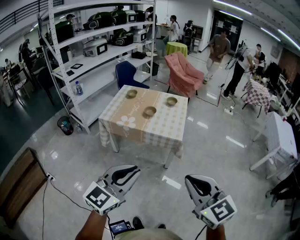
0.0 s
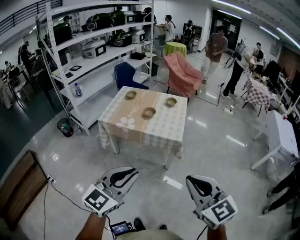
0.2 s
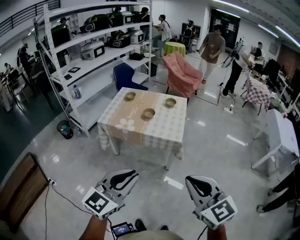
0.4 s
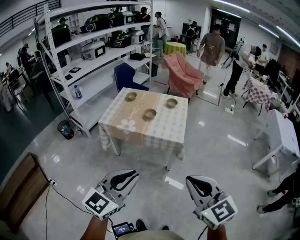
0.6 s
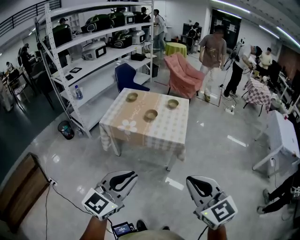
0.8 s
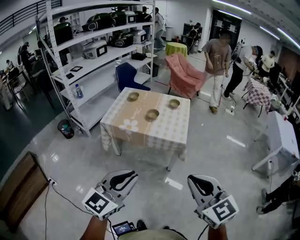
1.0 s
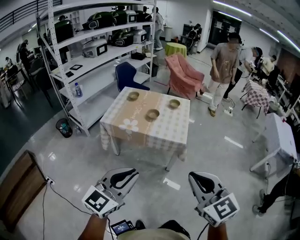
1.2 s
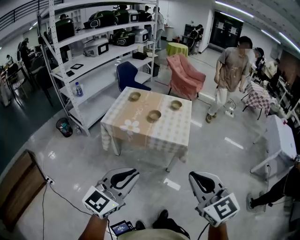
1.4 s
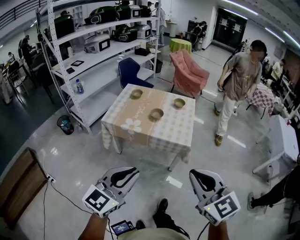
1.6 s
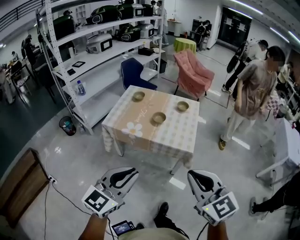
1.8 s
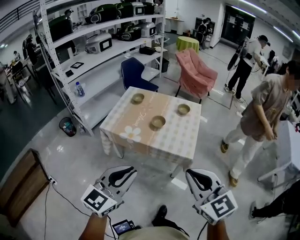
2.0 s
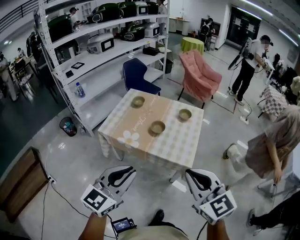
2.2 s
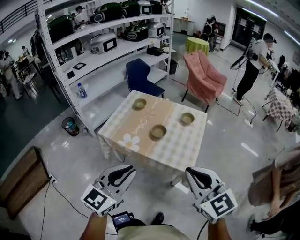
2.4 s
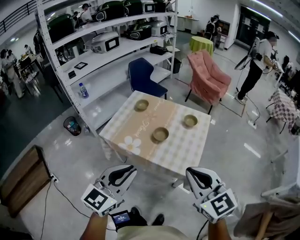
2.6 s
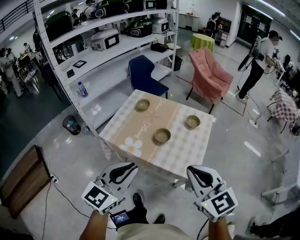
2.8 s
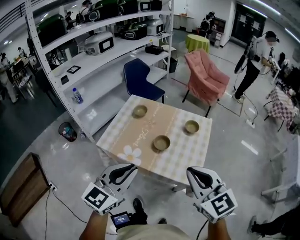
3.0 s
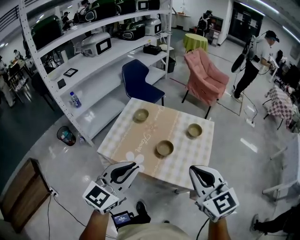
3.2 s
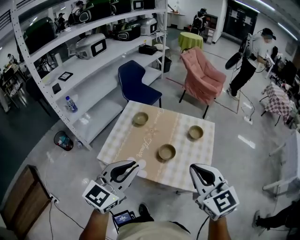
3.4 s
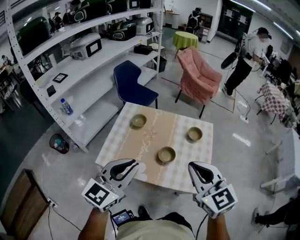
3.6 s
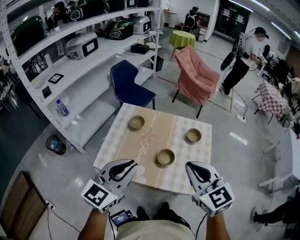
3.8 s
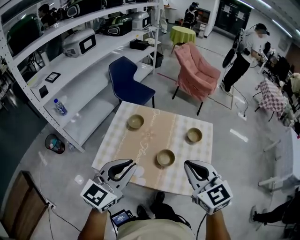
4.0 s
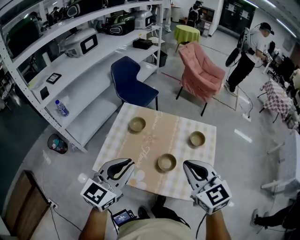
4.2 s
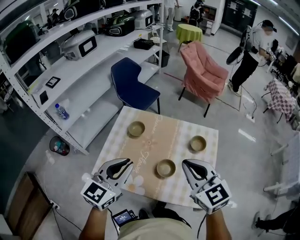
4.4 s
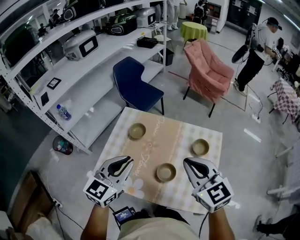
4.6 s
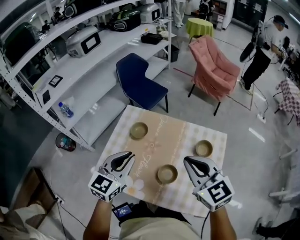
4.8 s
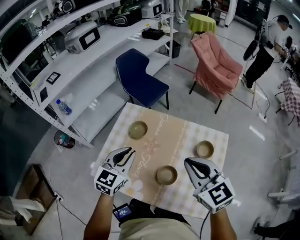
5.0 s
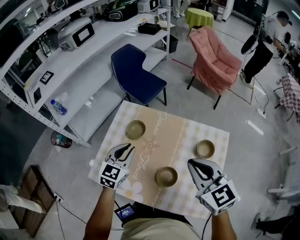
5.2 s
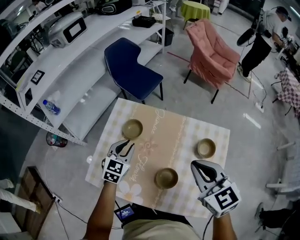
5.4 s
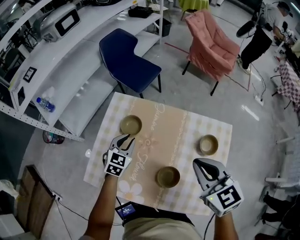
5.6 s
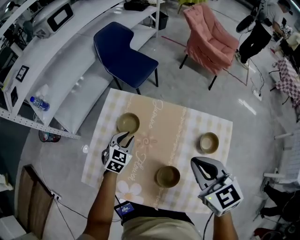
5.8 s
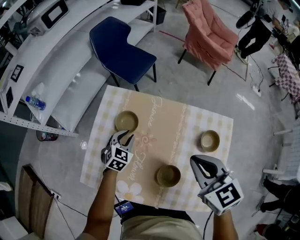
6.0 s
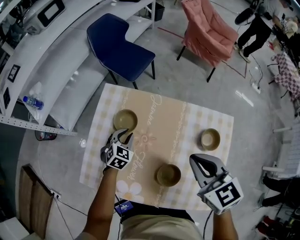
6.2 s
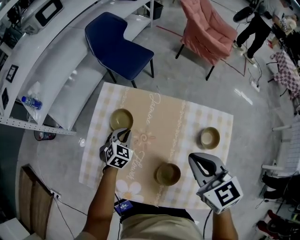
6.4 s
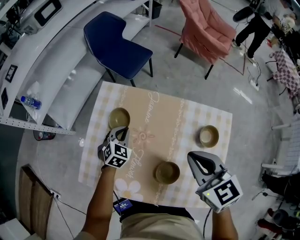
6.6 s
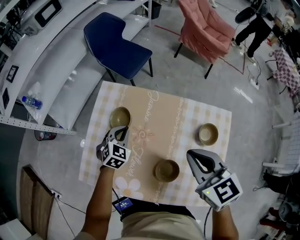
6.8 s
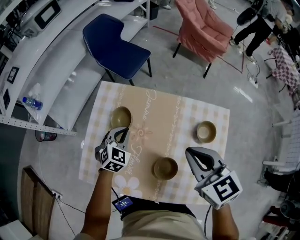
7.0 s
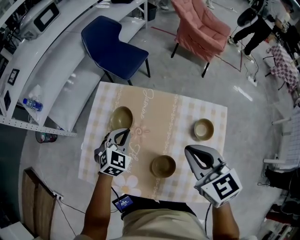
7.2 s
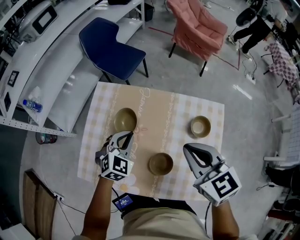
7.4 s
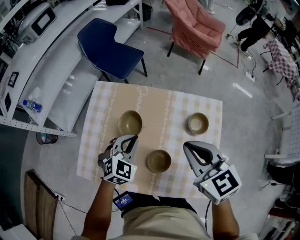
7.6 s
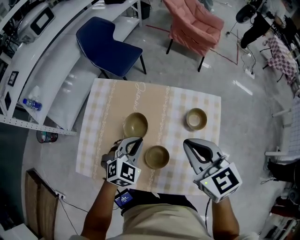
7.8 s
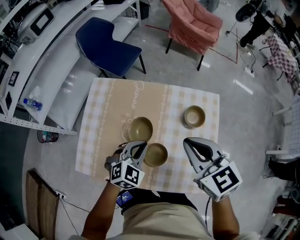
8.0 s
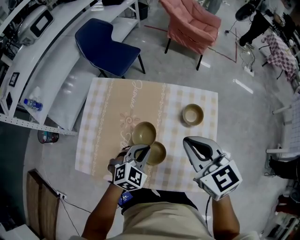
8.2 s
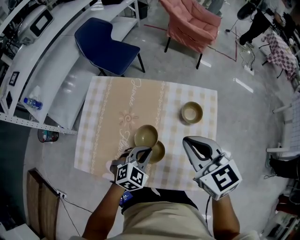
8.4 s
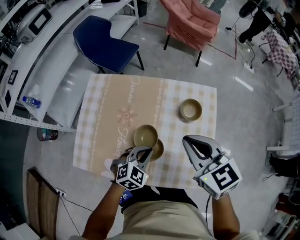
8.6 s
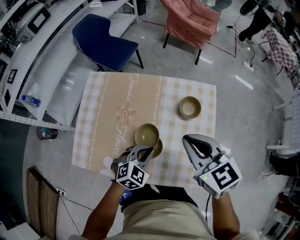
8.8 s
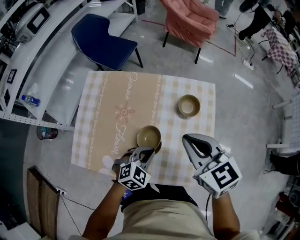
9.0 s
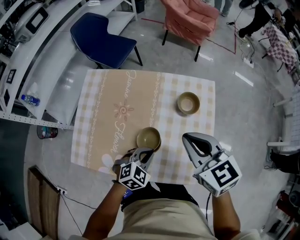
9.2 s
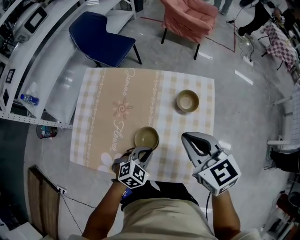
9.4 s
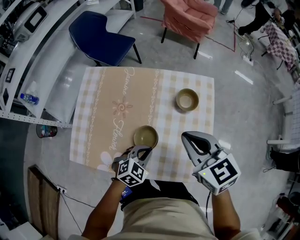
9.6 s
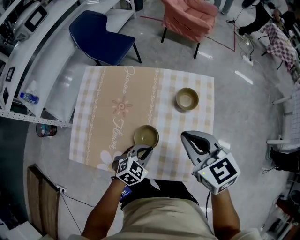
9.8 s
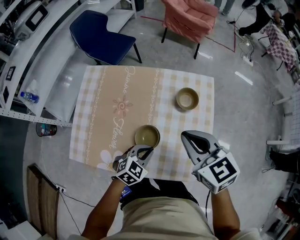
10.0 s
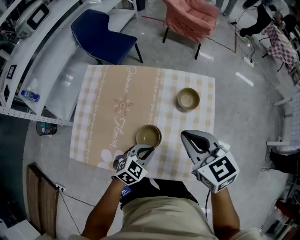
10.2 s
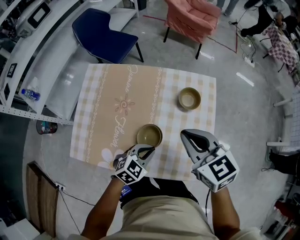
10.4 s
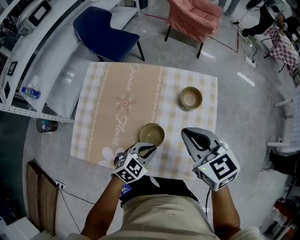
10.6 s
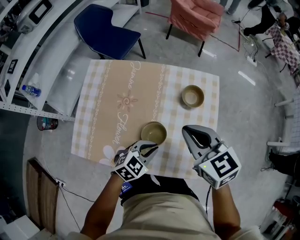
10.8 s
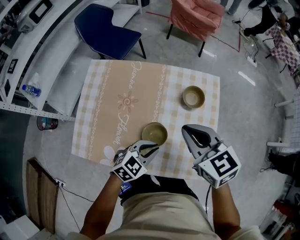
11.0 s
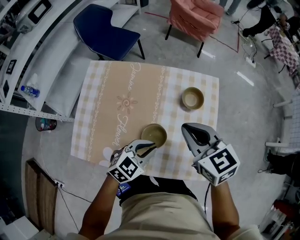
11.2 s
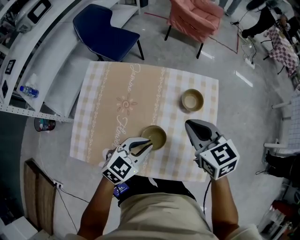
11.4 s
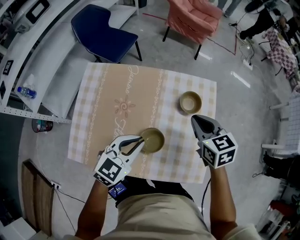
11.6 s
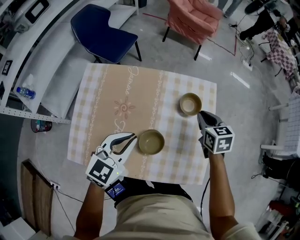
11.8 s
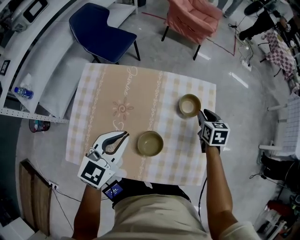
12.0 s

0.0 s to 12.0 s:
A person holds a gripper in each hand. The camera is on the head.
0.0 to 1.6 s: The two grippers go roughly 10 cm forward and to the left.
1.6 to 3.0 s: The two grippers go roughly 35 cm forward.
3.0 to 4.4 s: Both grippers move forward, approximately 25 cm.
4.4 to 6.0 s: The right gripper travels forward and downward by some 20 cm, while the left gripper heads downward and forward, covering roughly 40 cm, and tips its fingers downward by some 30 degrees.
6.0 to 7.6 s: The right gripper shifts by about 5 cm. The left gripper heads upward, backward and to the right, covering roughly 20 cm.
7.6 to 9.0 s: The left gripper shifts about 20 cm backward, to the right and downward. Meanwhile the right gripper is displaced to the right and backward by roughly 10 cm.
9.0 to 10.4 s: There are only small adjustments of the grippers.
10.4 to 12.0 s: The left gripper heads upward, to the left and forward, covering some 20 cm, and swivels approximately 30 degrees, while the right gripper moves downward, forward and to the right, about 25 cm, changes its angle by roughly 40 degrees, and opens up.

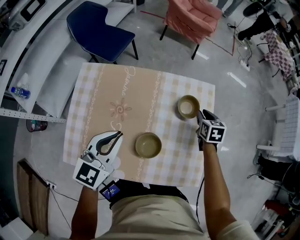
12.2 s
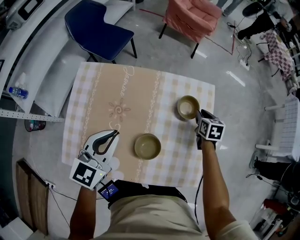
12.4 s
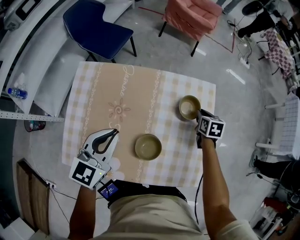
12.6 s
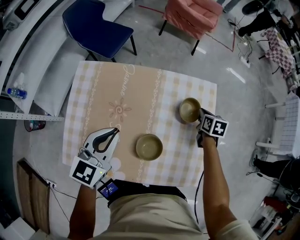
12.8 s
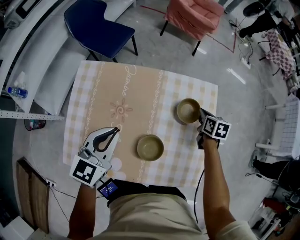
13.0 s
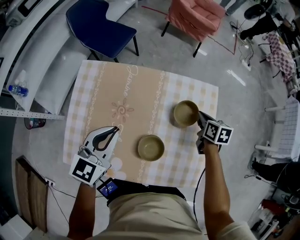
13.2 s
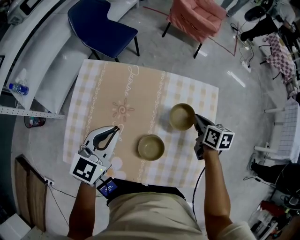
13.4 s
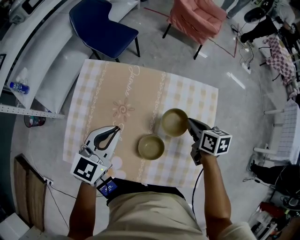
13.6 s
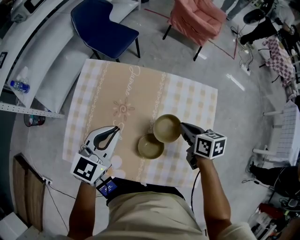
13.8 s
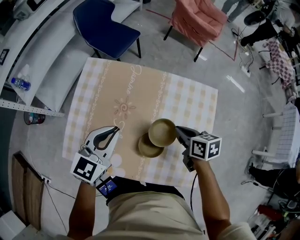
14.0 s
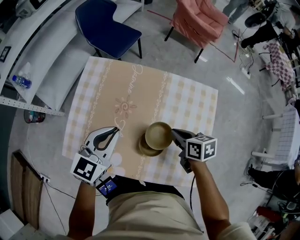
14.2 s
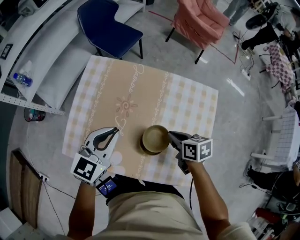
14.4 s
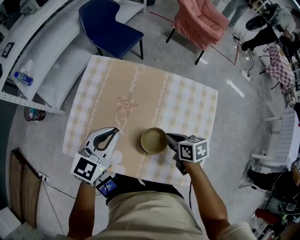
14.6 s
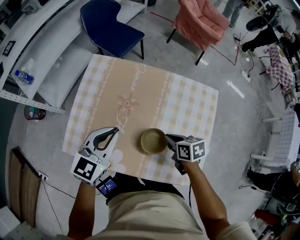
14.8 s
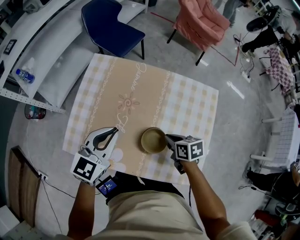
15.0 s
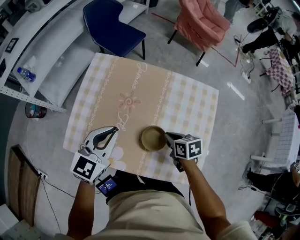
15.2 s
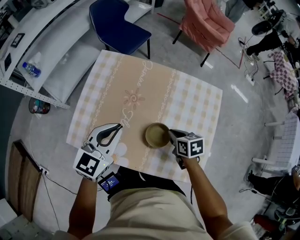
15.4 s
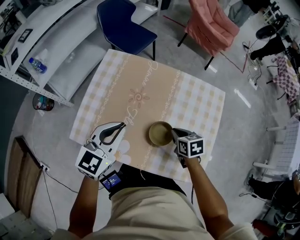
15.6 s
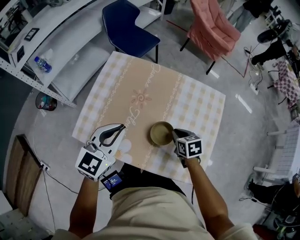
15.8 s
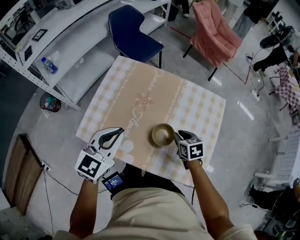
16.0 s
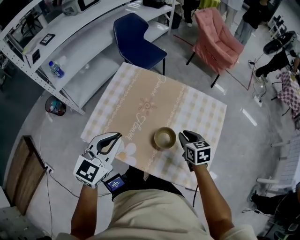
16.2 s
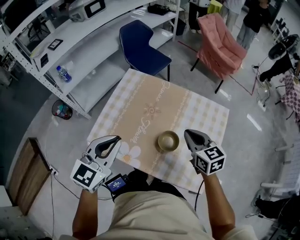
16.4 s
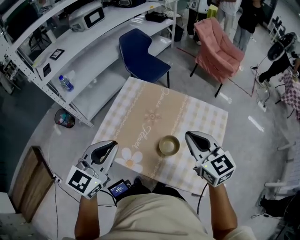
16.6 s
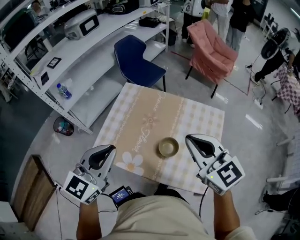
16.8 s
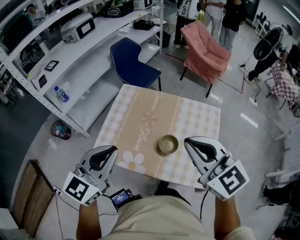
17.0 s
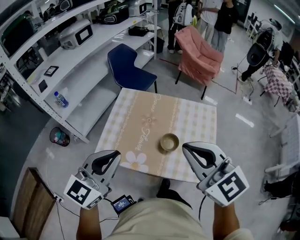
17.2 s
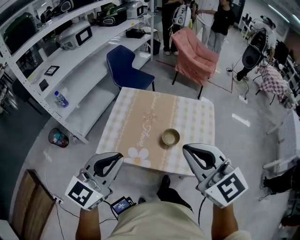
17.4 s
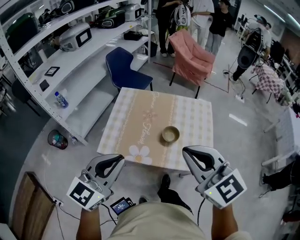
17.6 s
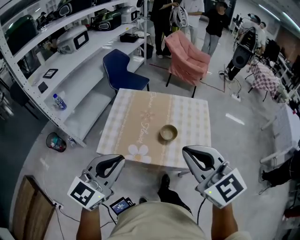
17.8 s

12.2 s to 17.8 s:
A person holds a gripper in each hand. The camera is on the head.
12.2 to 13.6 s: The right gripper shifts some 10 cm to the left and upward, changes its angle by approximately 30 degrees, and closes up.
13.6 to 15.0 s: The left gripper travels backward by about 5 cm, while the right gripper shifts some 15 cm to the left, backward and downward.
15.0 to 16.4 s: The right gripper is displaced upward by about 20 cm, and turns by approximately 40 degrees; the left gripper shifts about 15 cm upward, backward and to the left.
16.4 to 17.8 s: The right gripper is displaced backward, upward and to the left by some 40 cm, and changes its angle by about 30 degrees. Meanwhile the left gripper goes about 20 cm backward and upward, and turns by approximately 20 degrees.

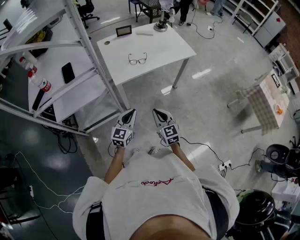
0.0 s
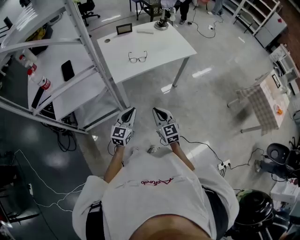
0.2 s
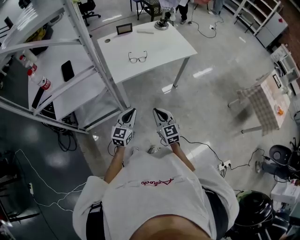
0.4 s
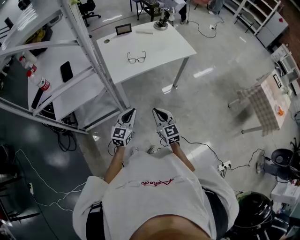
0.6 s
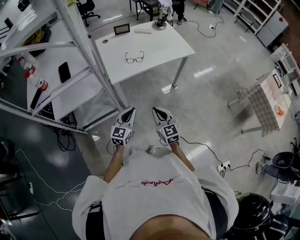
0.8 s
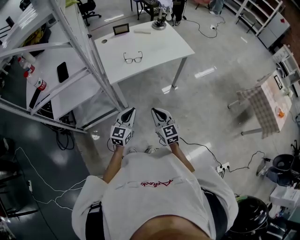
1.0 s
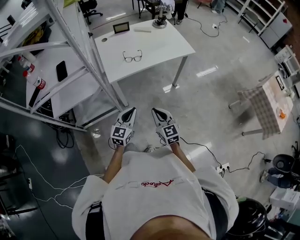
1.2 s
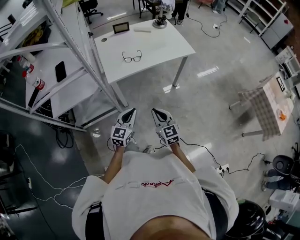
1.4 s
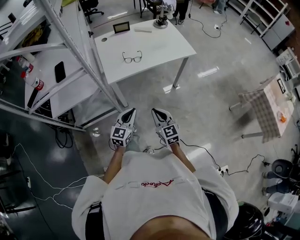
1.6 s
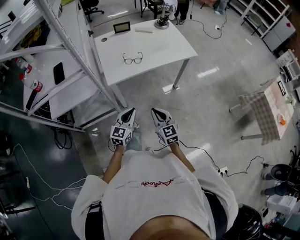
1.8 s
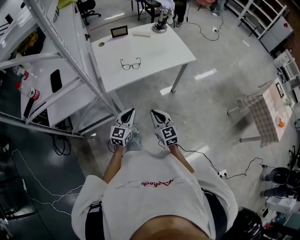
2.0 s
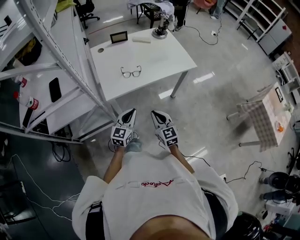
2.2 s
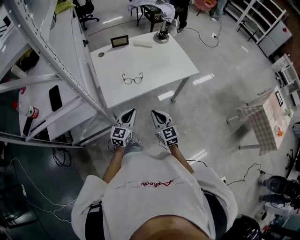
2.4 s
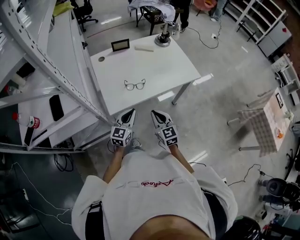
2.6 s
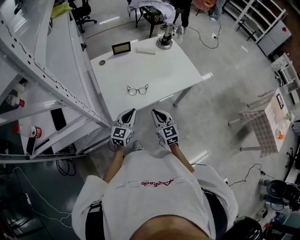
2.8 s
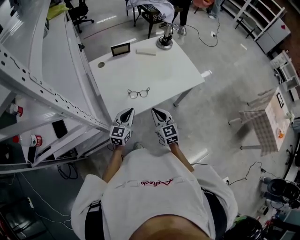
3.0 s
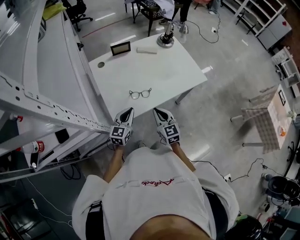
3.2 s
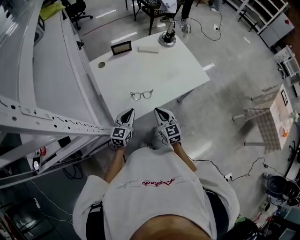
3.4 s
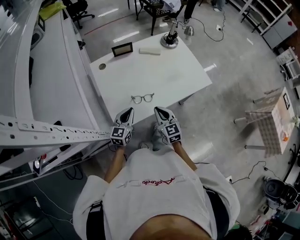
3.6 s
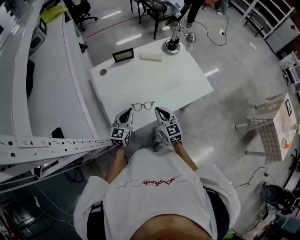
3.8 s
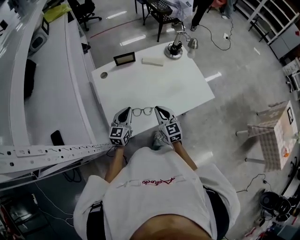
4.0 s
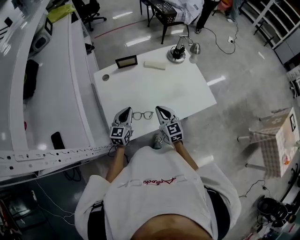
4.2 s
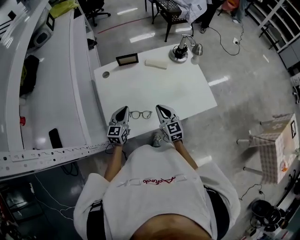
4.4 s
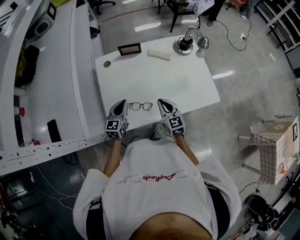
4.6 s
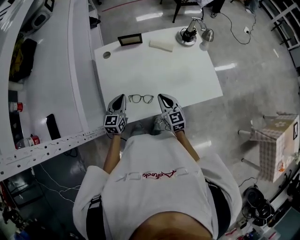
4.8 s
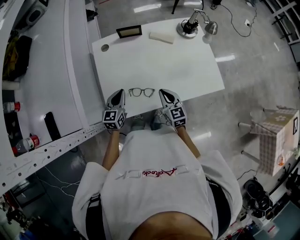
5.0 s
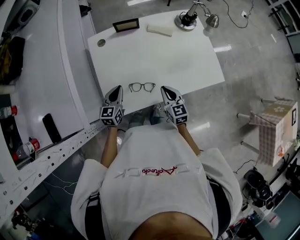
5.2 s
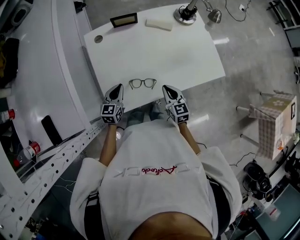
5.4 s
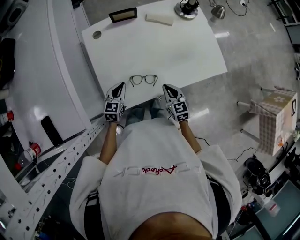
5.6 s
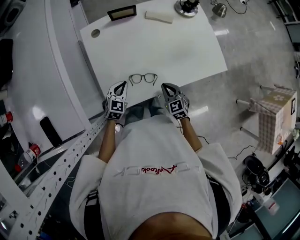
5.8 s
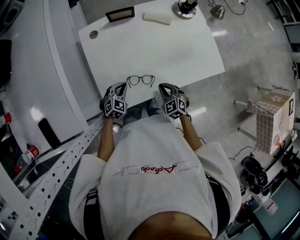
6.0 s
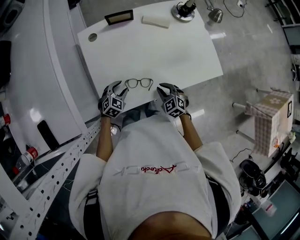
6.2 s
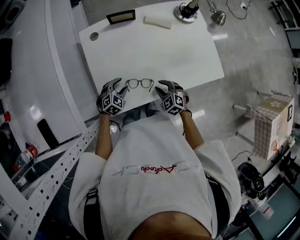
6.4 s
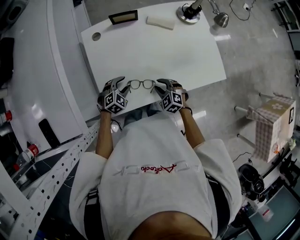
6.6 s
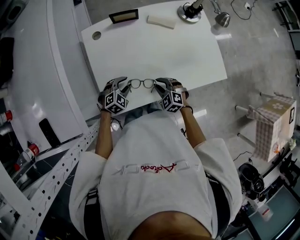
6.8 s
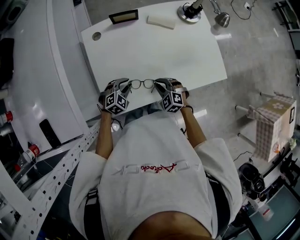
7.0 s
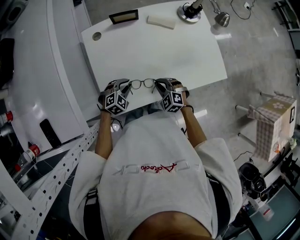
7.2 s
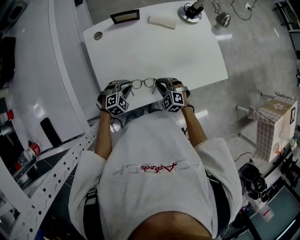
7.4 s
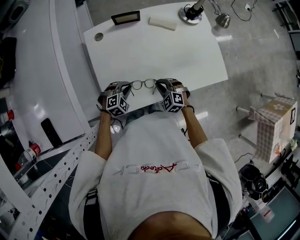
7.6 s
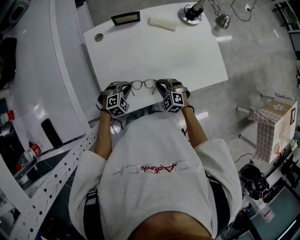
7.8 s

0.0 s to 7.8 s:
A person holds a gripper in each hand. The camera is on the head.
0.0 to 1.6 s: The grippers both shift to the right by about 5 cm.
1.6 to 3.2 s: The grippers both shift forward by some 30 cm.
3.2 to 4.6 s: The two grippers go about 15 cm forward.
4.6 to 6.2 s: The grippers both shift downward by approximately 15 cm. The left gripper points its fingers roughly 30 degrees further downward, and opens up, while the right gripper tilts its fingers roughly 30 degrees downward.
6.2 to 7.8 s: The right gripper shifts by some 5 cm. The left gripper rotates approximately 20 degrees, and closes.
